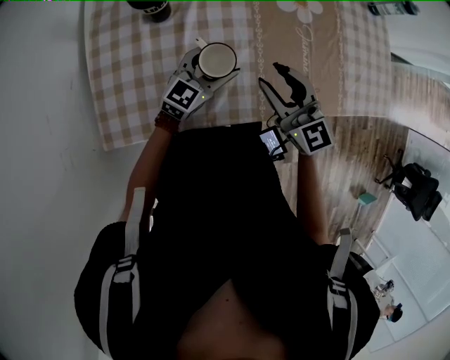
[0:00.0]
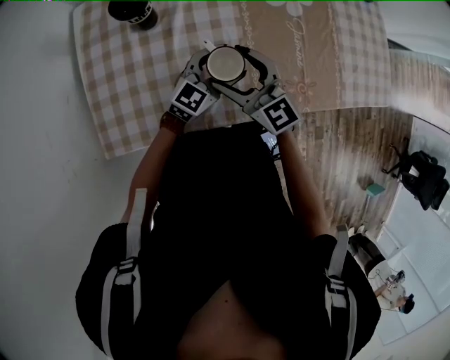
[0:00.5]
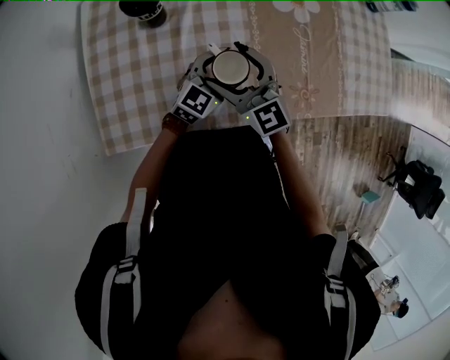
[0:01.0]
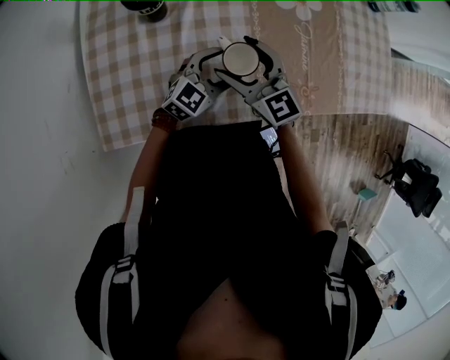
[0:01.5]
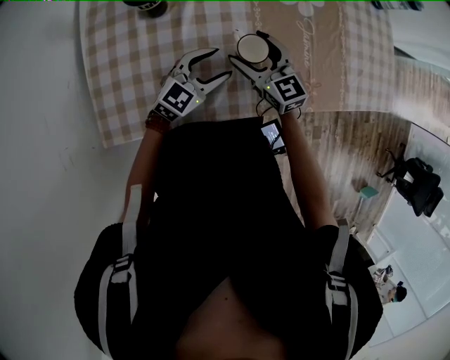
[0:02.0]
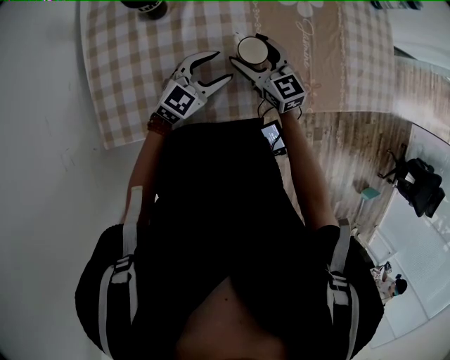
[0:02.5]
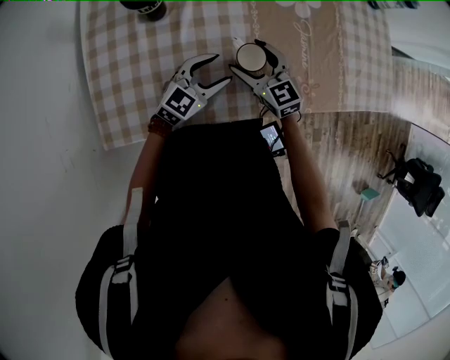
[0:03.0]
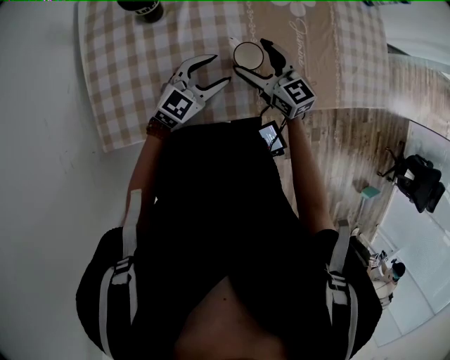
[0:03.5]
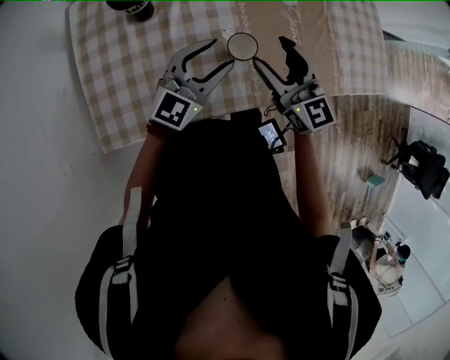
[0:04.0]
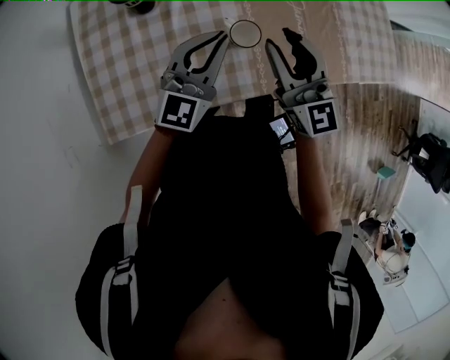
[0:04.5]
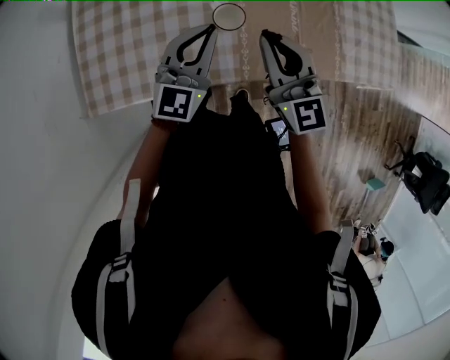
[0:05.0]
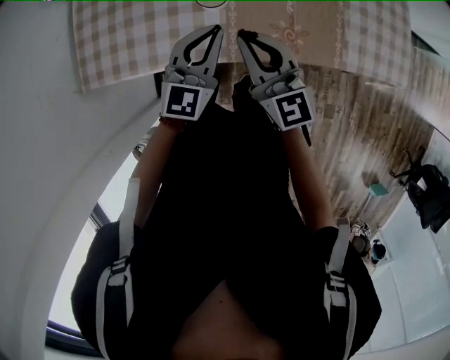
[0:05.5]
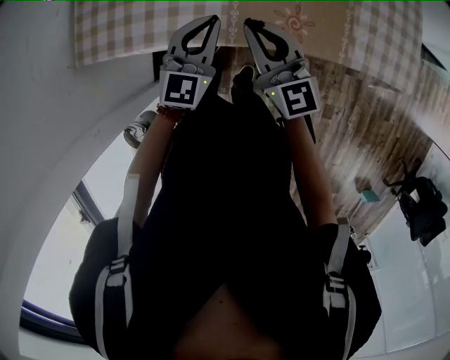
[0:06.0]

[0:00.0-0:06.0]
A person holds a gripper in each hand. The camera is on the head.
0:00.0 to 0:02.0: The right gripper heads downward and forward, covering approximately 10 cm, and opens up.
0:02.0 to 0:04.0: The left gripper is displaced upward by approximately 10 cm; the right gripper moves upward and to the right, approximately 15 cm.
0:04.0 to 0:06.0: The two grippers go approximately 15 cm backward and to the right. The left gripper turns by some 30 degrees, and closes its fingers. Meanwhile the right gripper closes up.

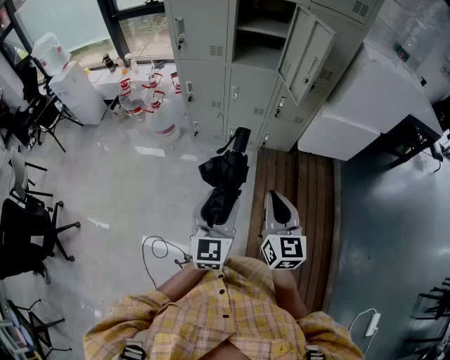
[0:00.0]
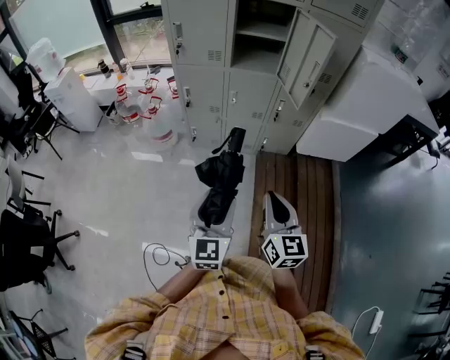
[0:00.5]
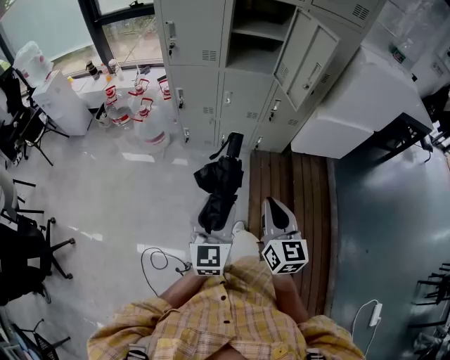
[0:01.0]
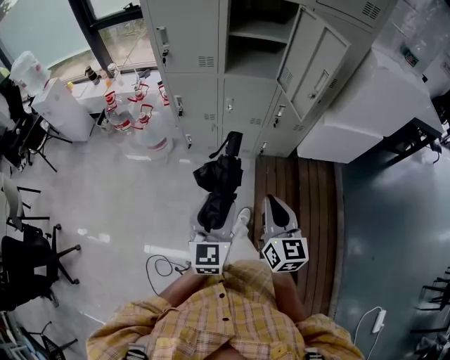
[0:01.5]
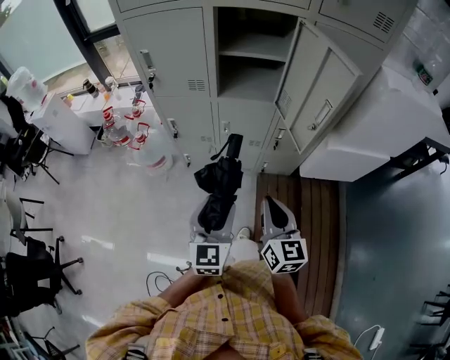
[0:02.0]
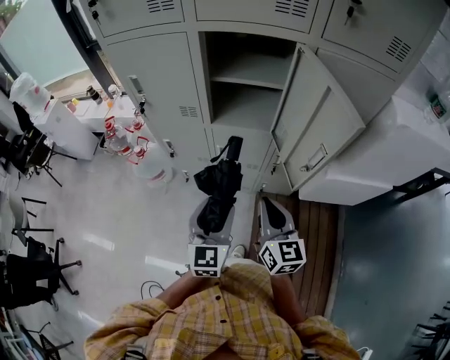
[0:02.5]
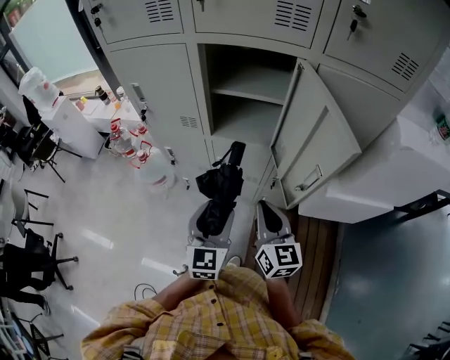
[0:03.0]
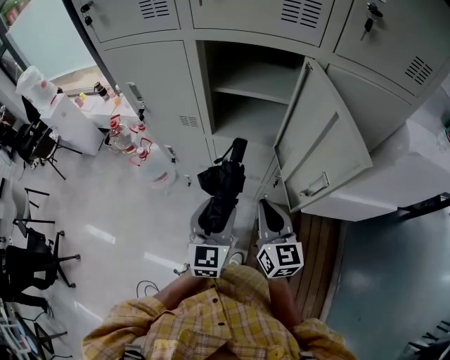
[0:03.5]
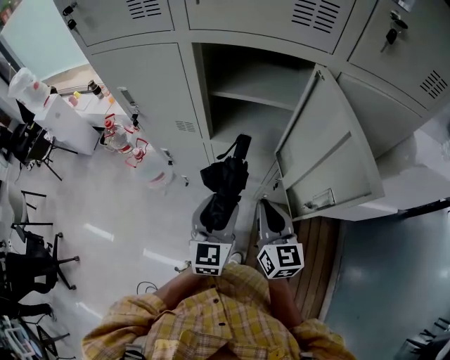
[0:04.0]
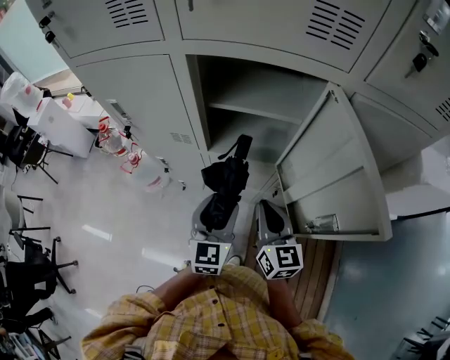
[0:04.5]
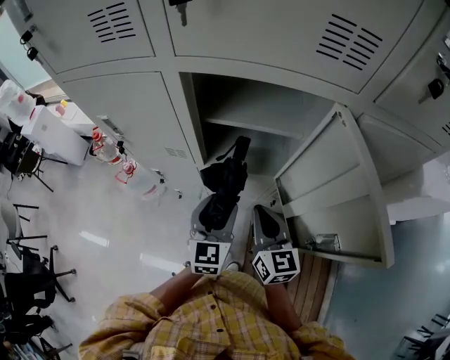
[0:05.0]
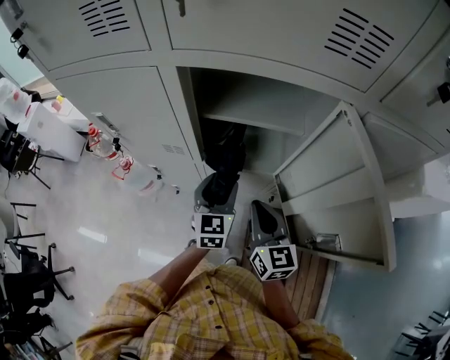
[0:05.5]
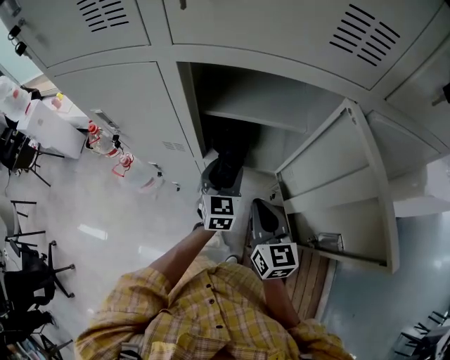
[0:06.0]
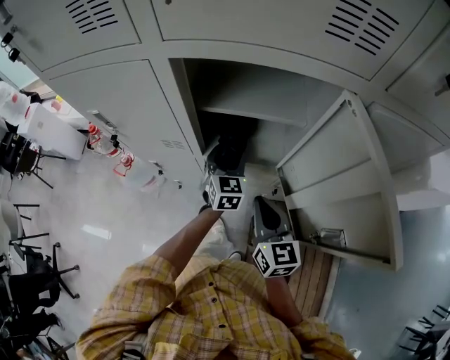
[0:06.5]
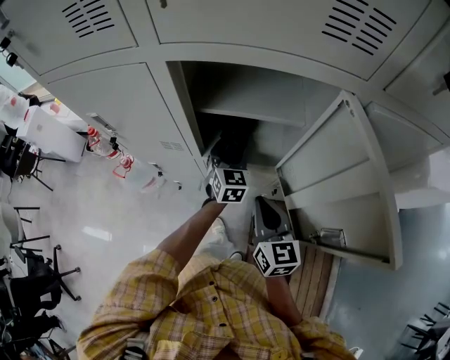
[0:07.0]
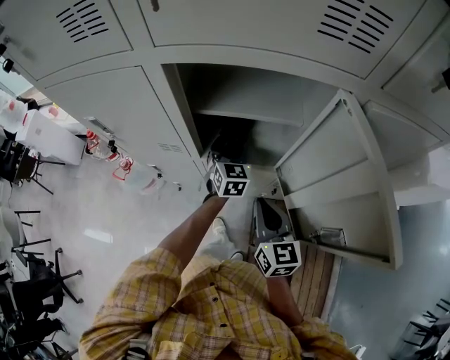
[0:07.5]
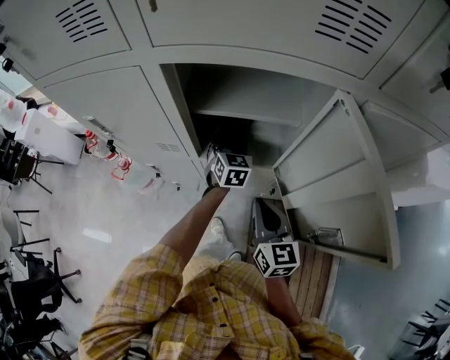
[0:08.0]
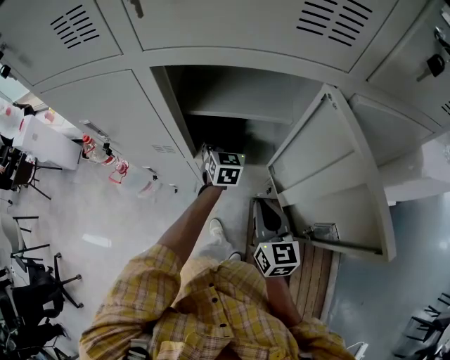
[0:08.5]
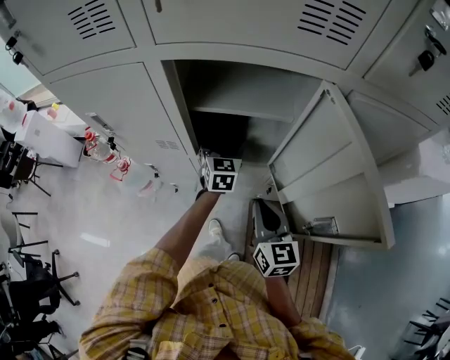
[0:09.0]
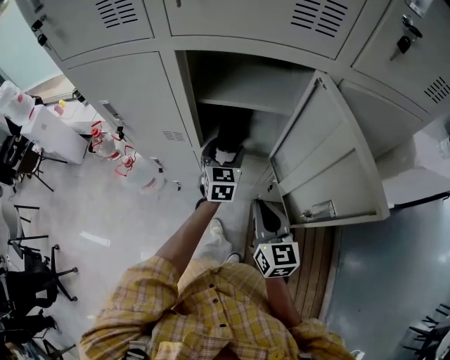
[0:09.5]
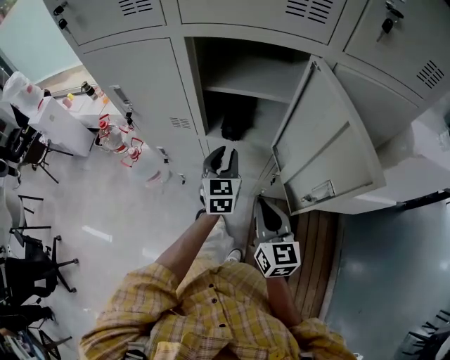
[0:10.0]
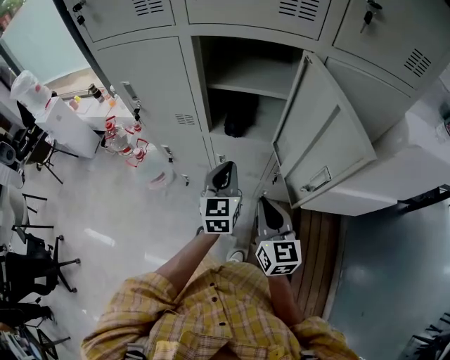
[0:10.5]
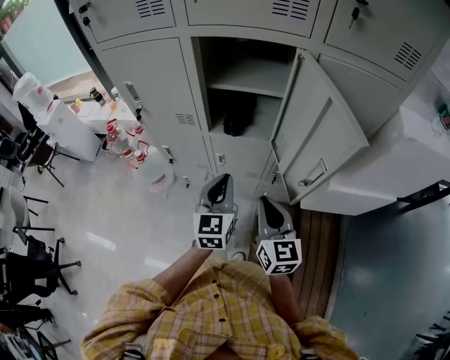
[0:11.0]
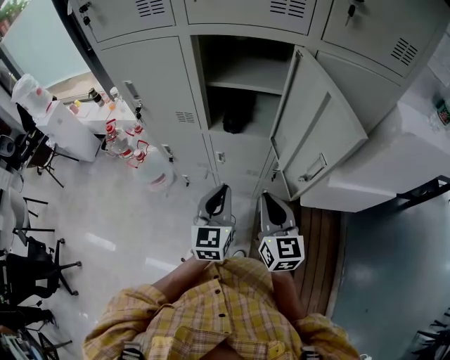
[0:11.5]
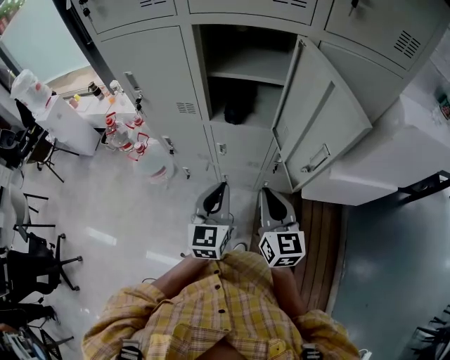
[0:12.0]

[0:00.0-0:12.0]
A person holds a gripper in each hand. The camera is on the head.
0:00.0 to 0:02.0: Both grippers travel together forward, some 25 cm.
0:02.0 to 0:04.0: Both grippers move forward, about 20 cm.
0:04.0 to 0:06.0: The right gripper shifts some 10 cm forward, while the left gripper shifts about 20 cm forward.
0:06.0 to 0:08.0: The left gripper heads forward, covering roughly 10 cm.
0:08.0 to 0:10.0: The left gripper goes roughly 20 cm backward and upward, and closes up; the right gripper travels backward by roughly 10 cm.
0:10.0 to 0:12.0: The left gripper travels backward by roughly 20 cm. The right gripper heads backward, covering roughly 5 cm.

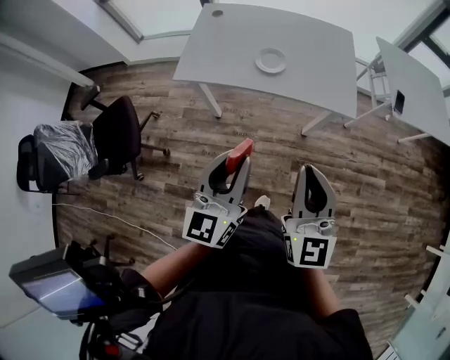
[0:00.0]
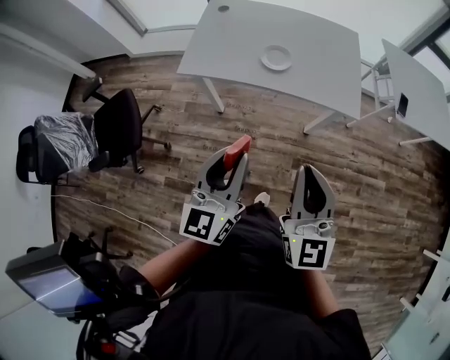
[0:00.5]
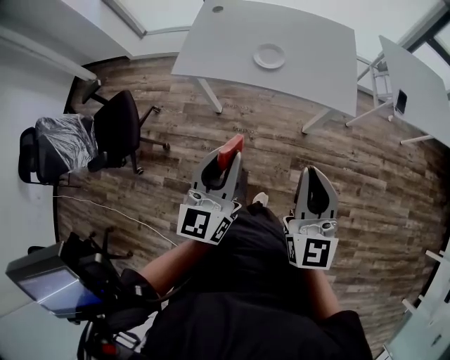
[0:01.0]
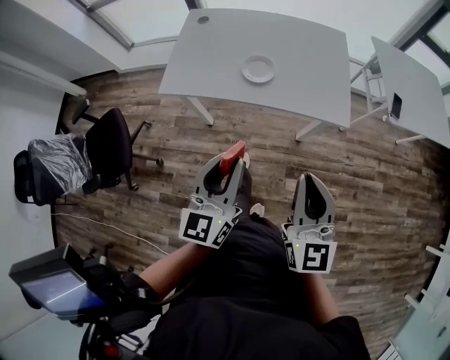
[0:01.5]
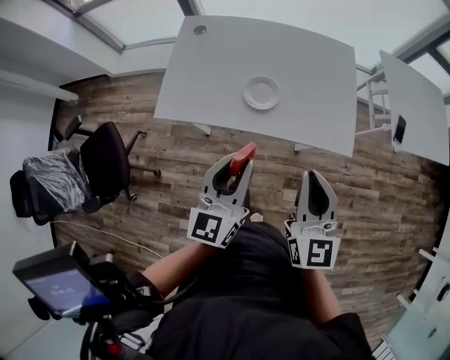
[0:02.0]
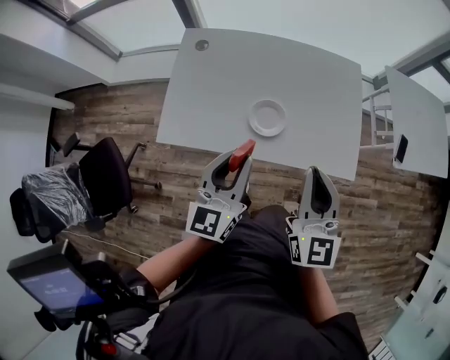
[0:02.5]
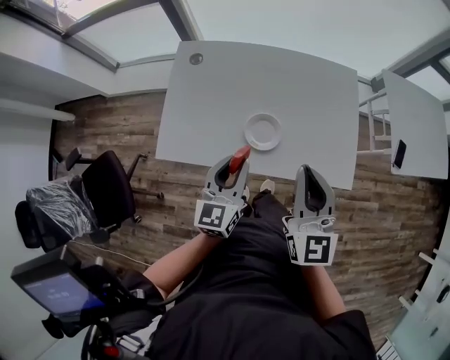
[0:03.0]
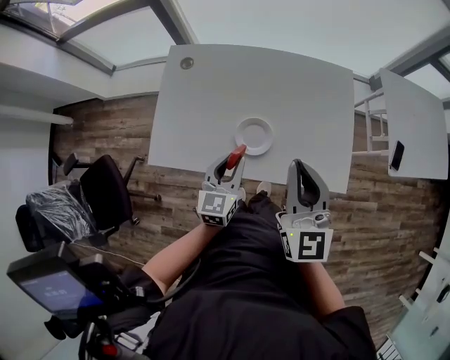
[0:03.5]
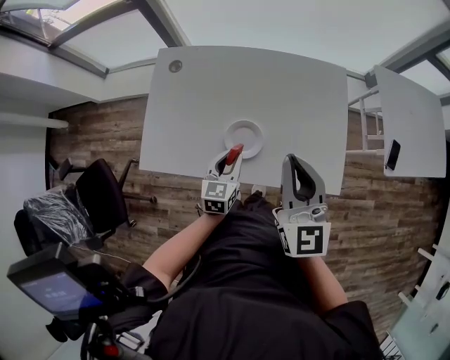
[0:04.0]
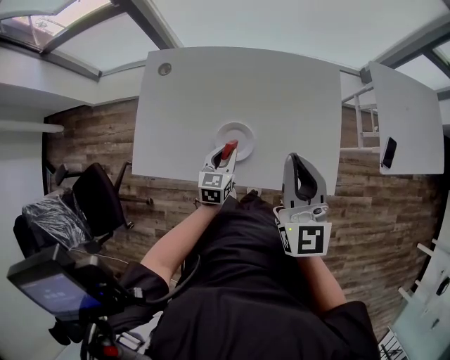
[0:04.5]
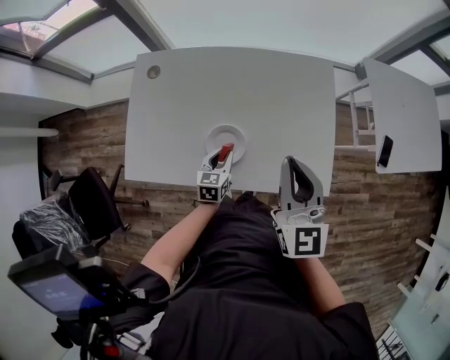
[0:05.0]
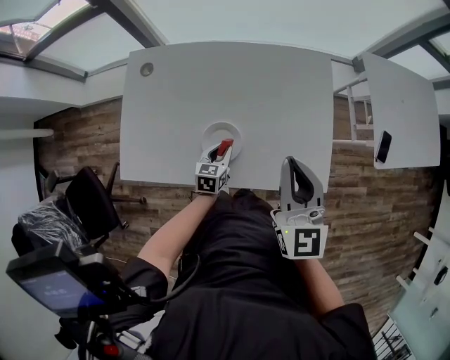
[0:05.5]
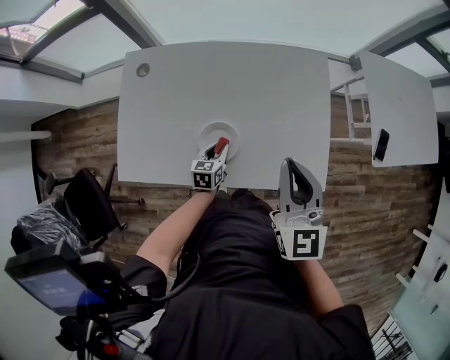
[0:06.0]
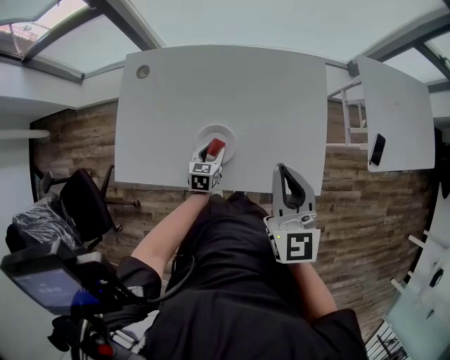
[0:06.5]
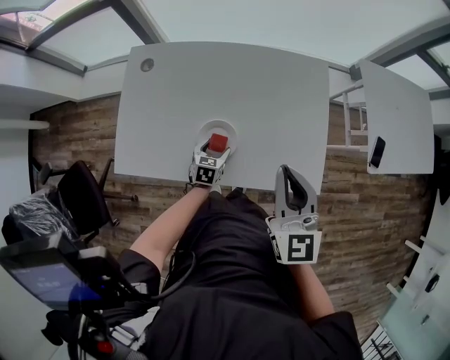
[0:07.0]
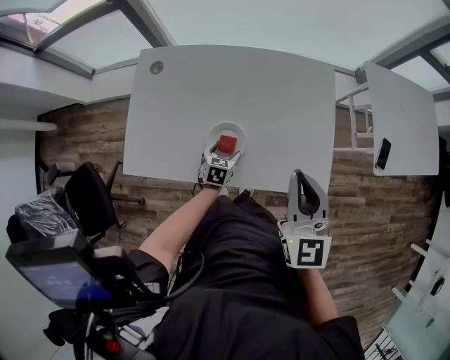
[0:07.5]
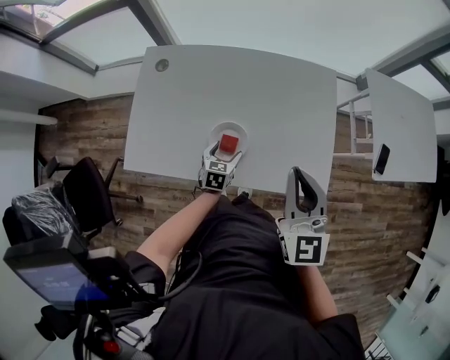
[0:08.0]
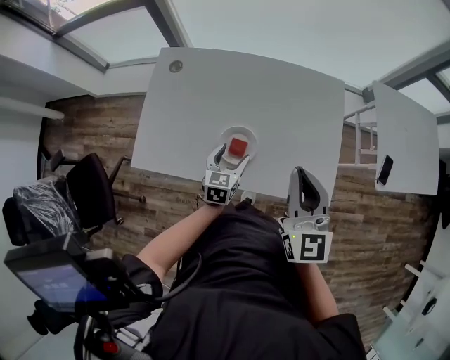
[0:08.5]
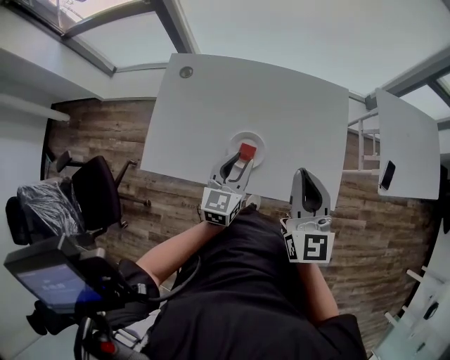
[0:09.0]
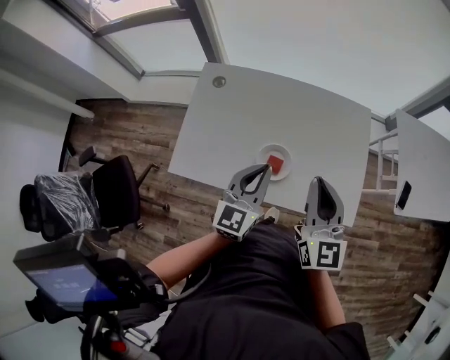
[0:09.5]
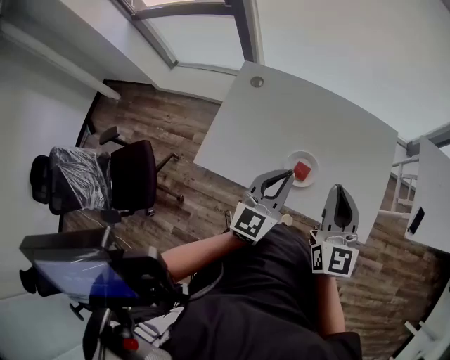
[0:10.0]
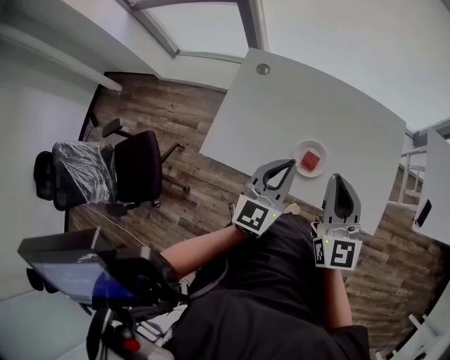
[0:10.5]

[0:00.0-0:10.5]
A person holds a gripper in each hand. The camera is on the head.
0:00.0 to 0:02.0: The grippers both shift forward by roughly 20 cm.
0:02.0 to 0:04.0: The left gripper shifts some 30 cm forward and downward, and swivels some 20 degrees. Meanwhile the right gripper heads forward, covering roughly 20 cm.
0:04.0 to 0:06.5: The left gripper heads downward and forward, covering some 15 cm. Meanwhile the right gripper goes roughly 5 cm to the right.
0:06.5 to 0:08.5: The left gripper travels upward by roughly 10 cm, and opens.
0:08.5 to 0:10.5: The left gripper heads upward, covering some 20 cm, rotates roughly 30 degrees, and closes up; the right gripper shifts some 10 cm to the left.
